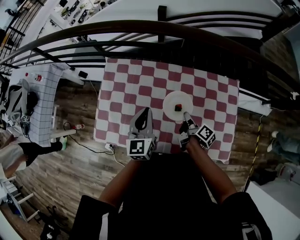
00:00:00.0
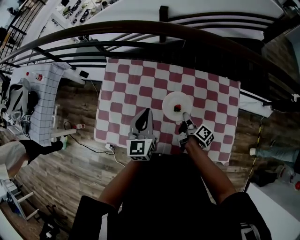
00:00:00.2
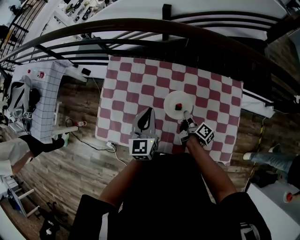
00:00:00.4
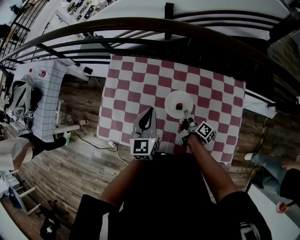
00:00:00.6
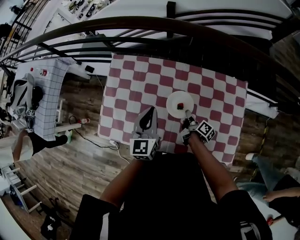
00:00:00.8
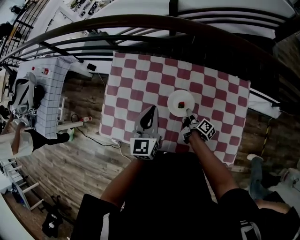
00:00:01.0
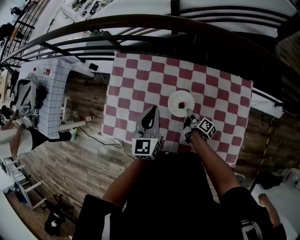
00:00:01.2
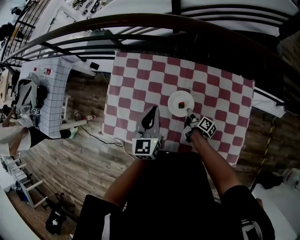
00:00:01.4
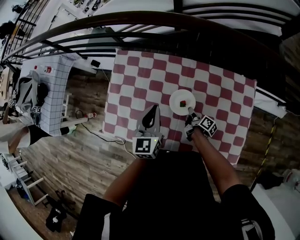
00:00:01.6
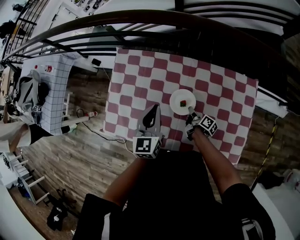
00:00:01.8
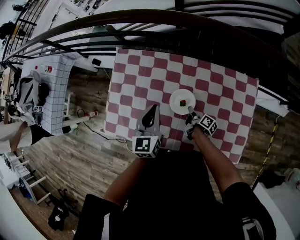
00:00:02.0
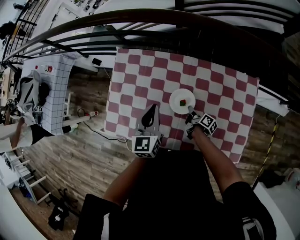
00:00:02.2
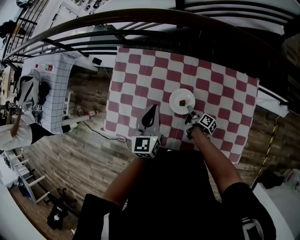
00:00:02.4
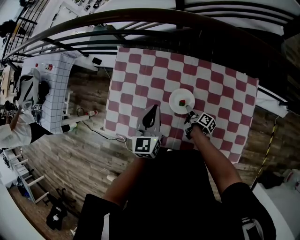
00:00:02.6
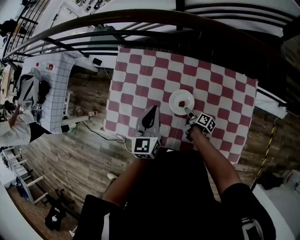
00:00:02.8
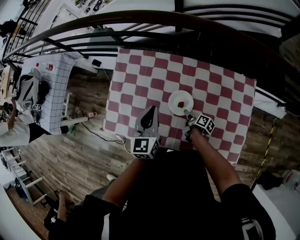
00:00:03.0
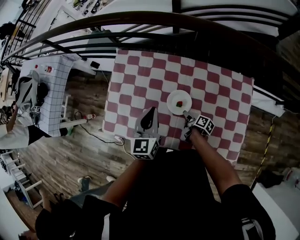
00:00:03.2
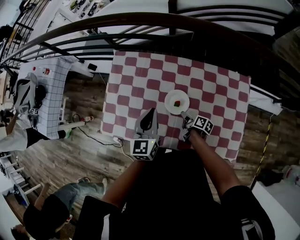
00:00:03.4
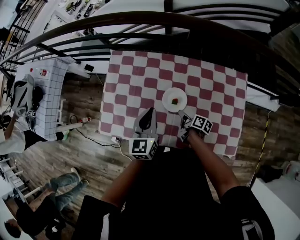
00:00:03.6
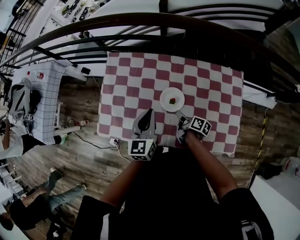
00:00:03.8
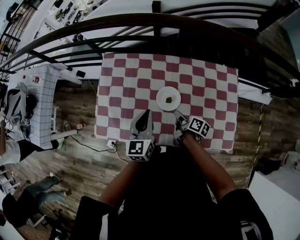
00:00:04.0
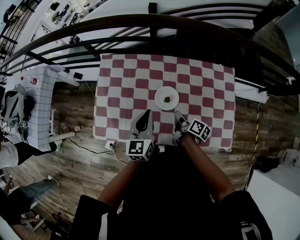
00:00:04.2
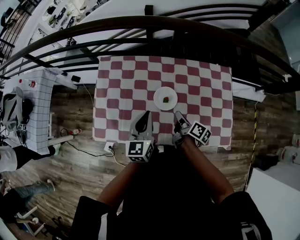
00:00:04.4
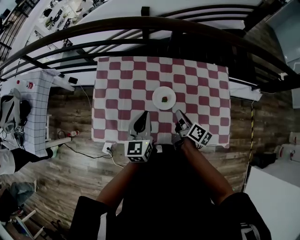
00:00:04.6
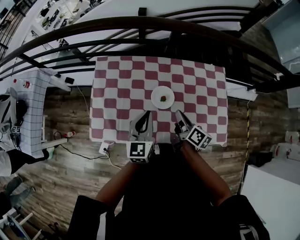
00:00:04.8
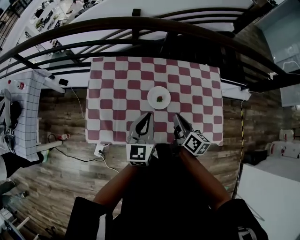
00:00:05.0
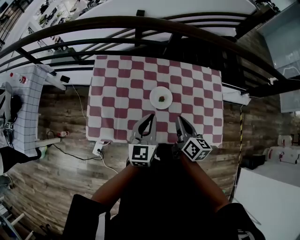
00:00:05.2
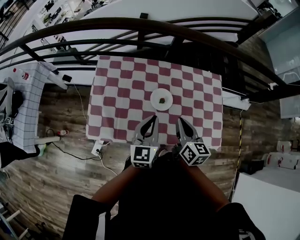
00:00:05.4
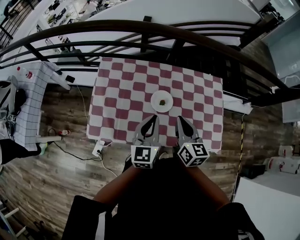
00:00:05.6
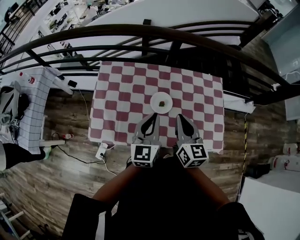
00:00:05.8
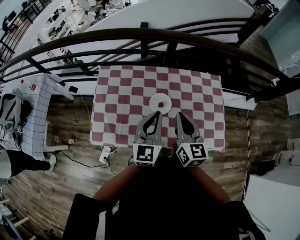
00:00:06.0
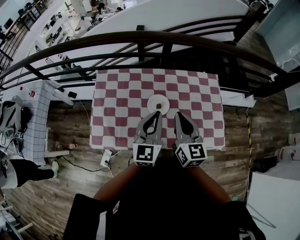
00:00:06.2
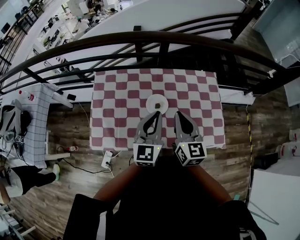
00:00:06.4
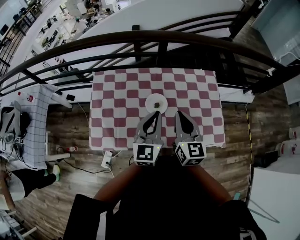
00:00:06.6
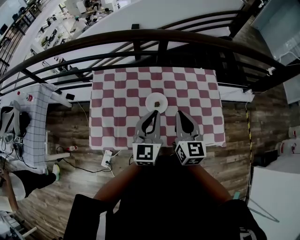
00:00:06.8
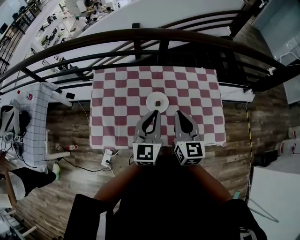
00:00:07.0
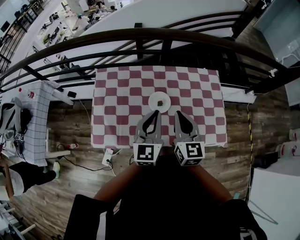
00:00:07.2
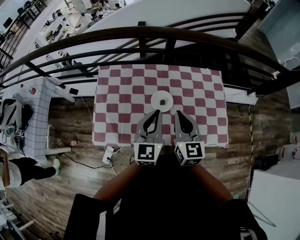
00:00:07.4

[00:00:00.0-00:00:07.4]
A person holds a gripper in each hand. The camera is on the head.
00:00:03.0 to 00:00:04.4: The left gripper shifts by about 5 cm.
00:00:04.4 to 00:00:06.0: The left gripper is displaced upward by roughly 10 cm.

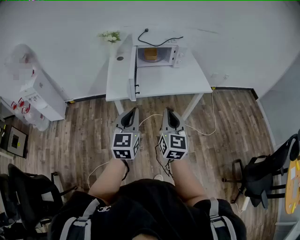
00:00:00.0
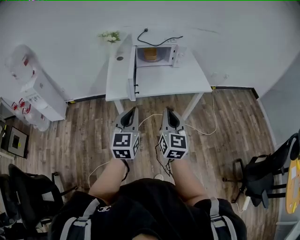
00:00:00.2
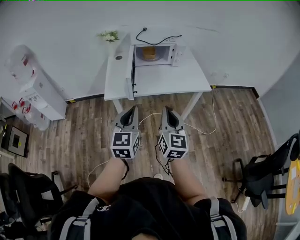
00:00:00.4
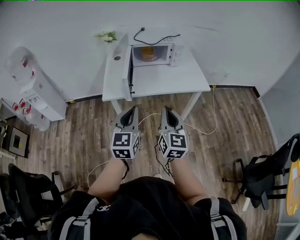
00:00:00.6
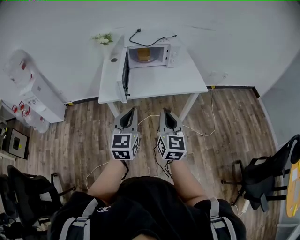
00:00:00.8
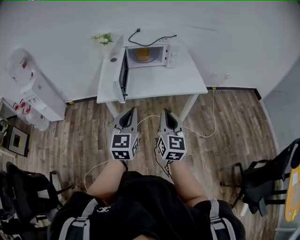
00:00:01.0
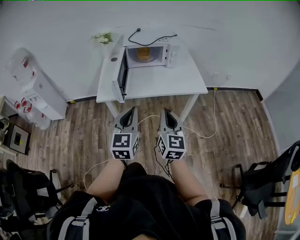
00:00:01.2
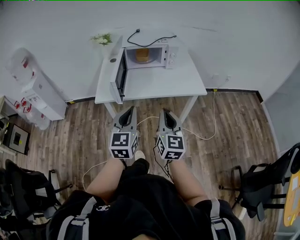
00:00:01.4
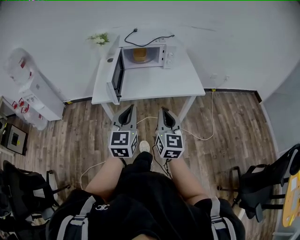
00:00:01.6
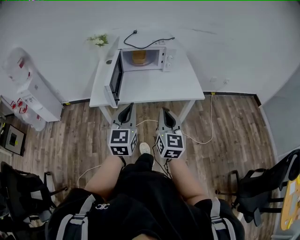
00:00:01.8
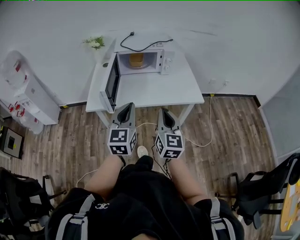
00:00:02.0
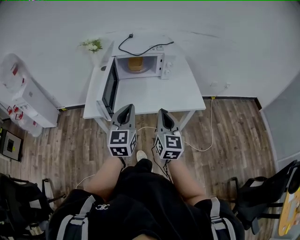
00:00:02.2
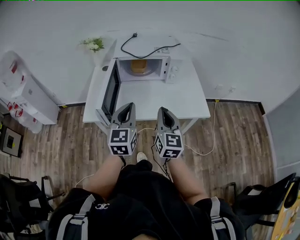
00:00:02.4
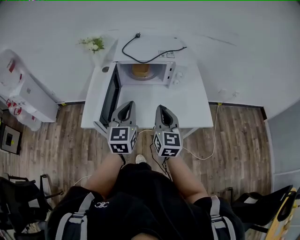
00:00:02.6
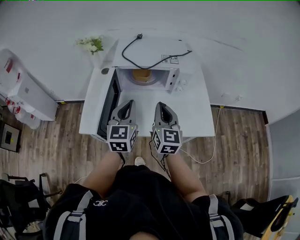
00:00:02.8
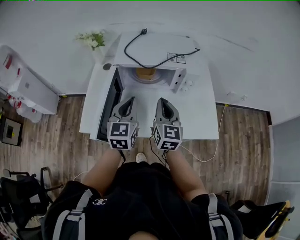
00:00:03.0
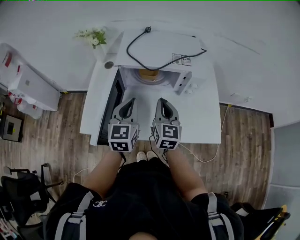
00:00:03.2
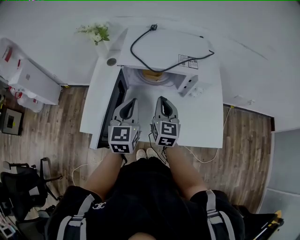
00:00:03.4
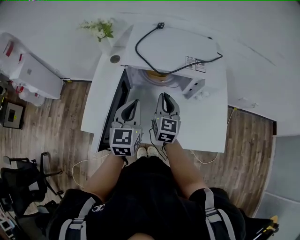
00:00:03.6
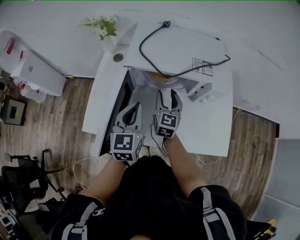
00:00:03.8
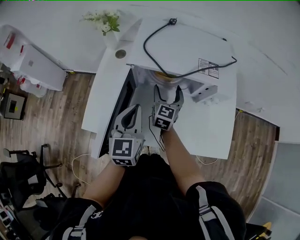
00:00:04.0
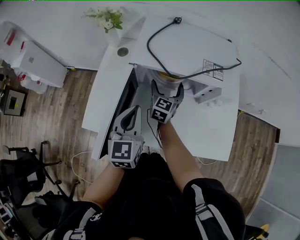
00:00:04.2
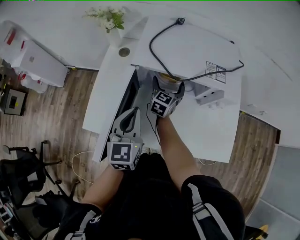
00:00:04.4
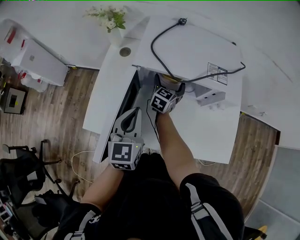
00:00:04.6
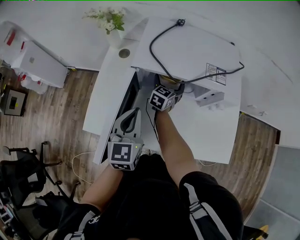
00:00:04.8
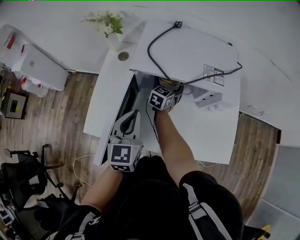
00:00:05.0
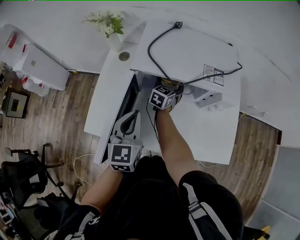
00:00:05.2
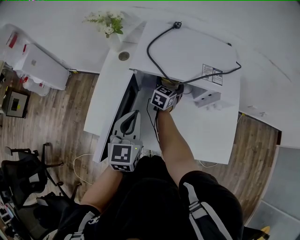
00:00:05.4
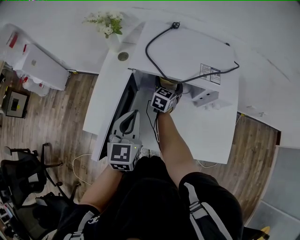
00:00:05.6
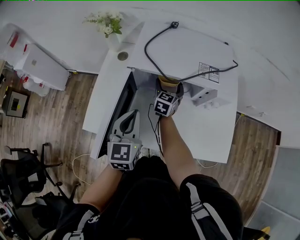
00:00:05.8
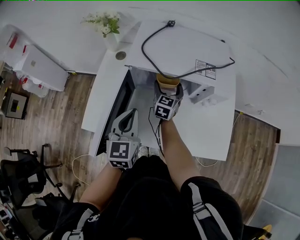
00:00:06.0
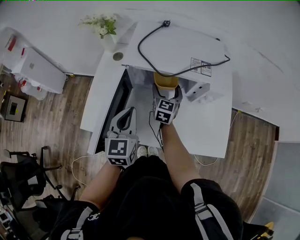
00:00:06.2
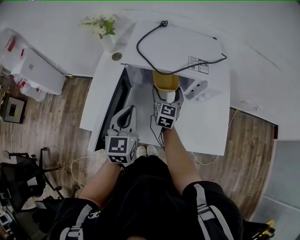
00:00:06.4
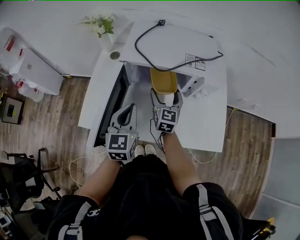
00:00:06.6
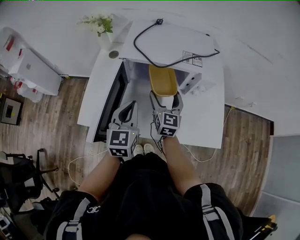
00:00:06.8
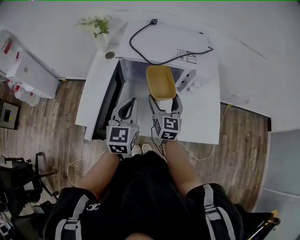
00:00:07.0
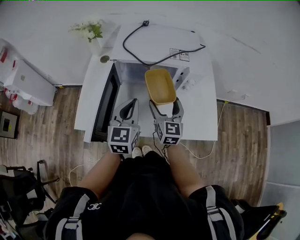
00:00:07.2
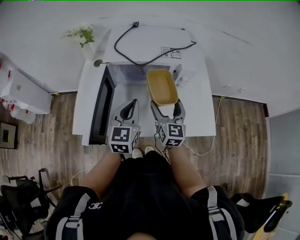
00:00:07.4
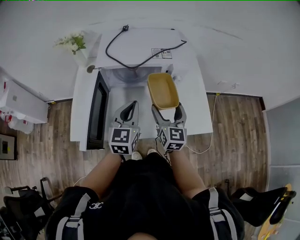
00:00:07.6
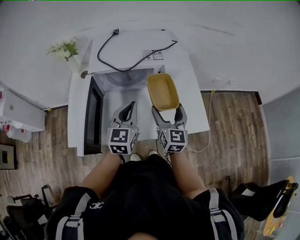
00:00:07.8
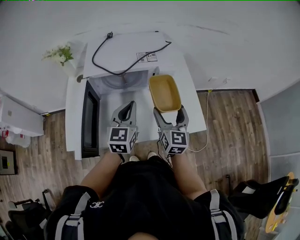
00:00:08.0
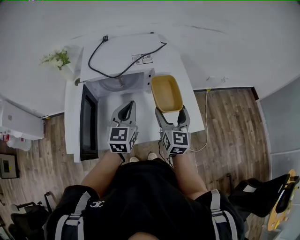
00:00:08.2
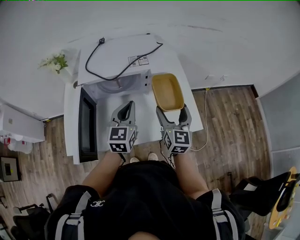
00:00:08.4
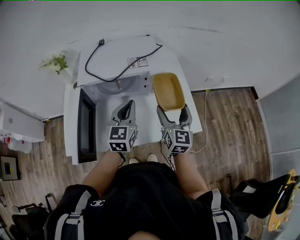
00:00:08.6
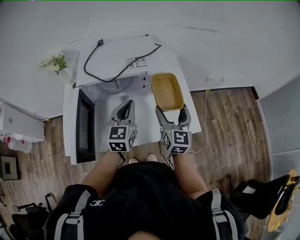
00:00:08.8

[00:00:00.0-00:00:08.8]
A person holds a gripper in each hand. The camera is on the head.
00:00:00.0 to 00:00:01.4: The two grippers go about 10 cm to the right.
00:00:01.4 to 00:00:03.0: Both grippers are carried forward, about 50 cm.
00:00:03.0 to 00:00:04.4: The left gripper moves to the left, forward and downward, some 10 cm; the right gripper shifts some 30 cm forward and downward, and opens its fingers.
00:00:04.4 to 00:00:05.8: The grippers move only a little.
00:00:05.8 to 00:00:07.4: The left gripper travels to the right by roughly 10 cm, while the right gripper travels backward, upward and to the right by about 30 cm.
00:00:07.4 to 00:00:08.8: The left gripper heads to the right and forward, covering roughly 10 cm. The right gripper travels to the right and upward by approximately 15 cm.

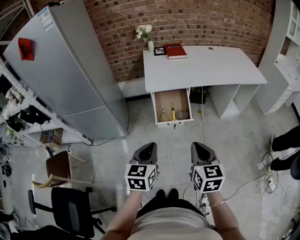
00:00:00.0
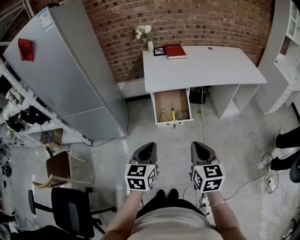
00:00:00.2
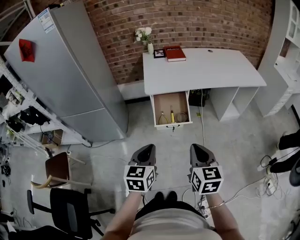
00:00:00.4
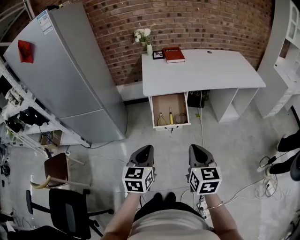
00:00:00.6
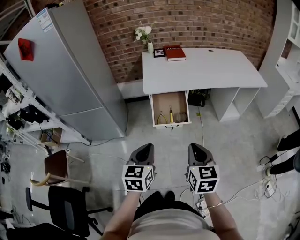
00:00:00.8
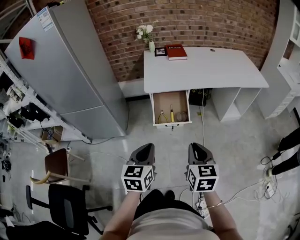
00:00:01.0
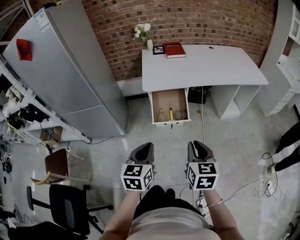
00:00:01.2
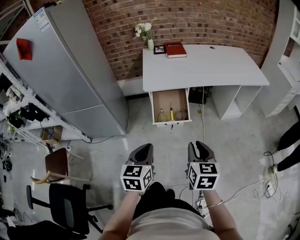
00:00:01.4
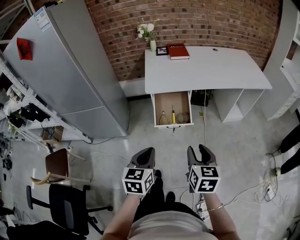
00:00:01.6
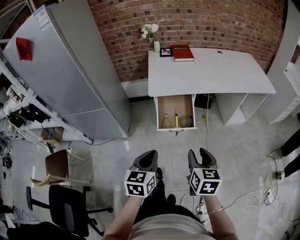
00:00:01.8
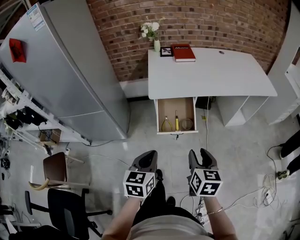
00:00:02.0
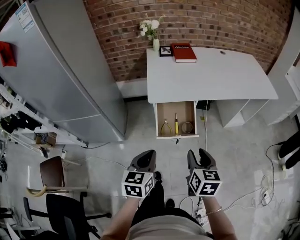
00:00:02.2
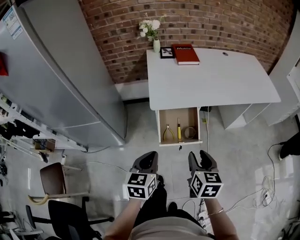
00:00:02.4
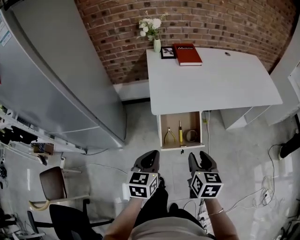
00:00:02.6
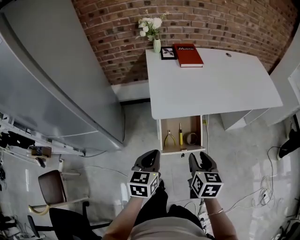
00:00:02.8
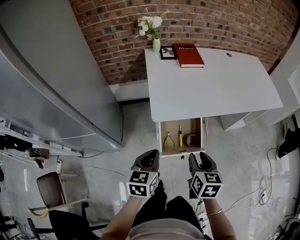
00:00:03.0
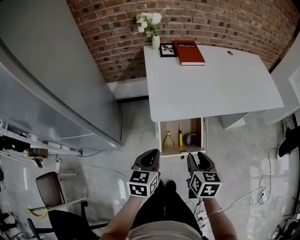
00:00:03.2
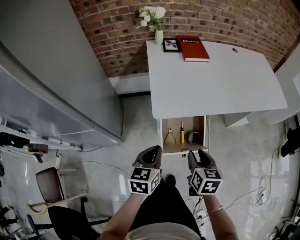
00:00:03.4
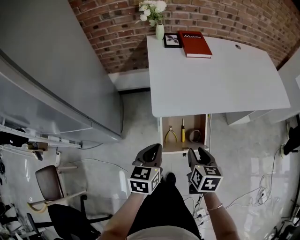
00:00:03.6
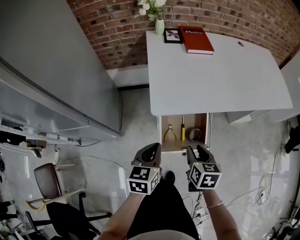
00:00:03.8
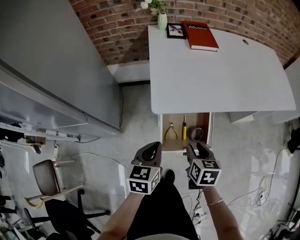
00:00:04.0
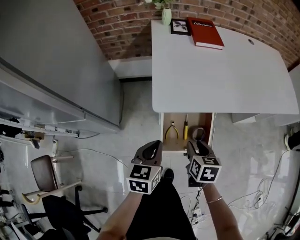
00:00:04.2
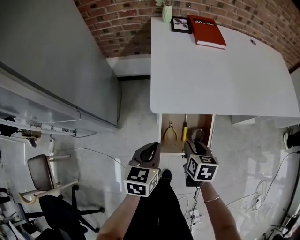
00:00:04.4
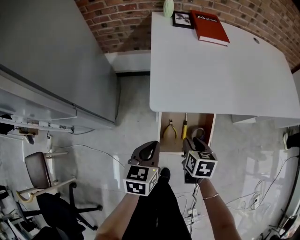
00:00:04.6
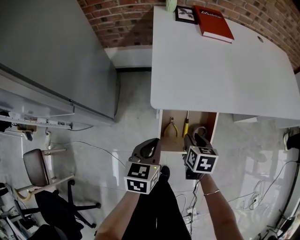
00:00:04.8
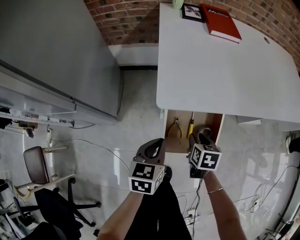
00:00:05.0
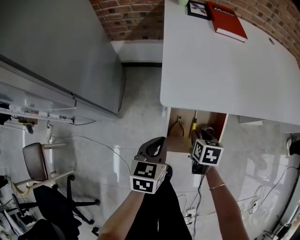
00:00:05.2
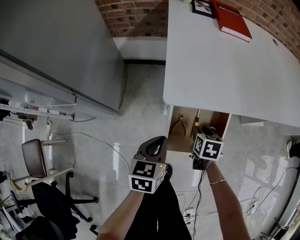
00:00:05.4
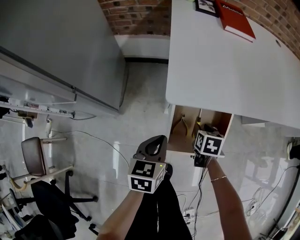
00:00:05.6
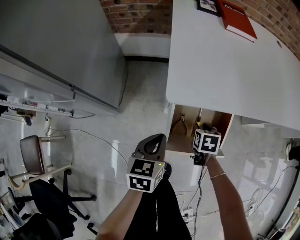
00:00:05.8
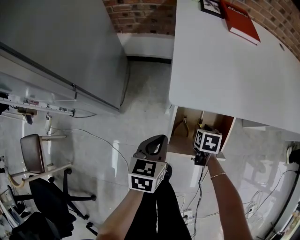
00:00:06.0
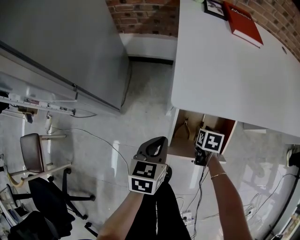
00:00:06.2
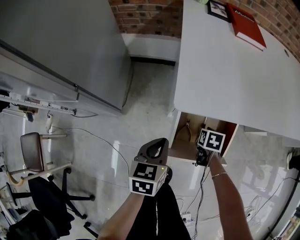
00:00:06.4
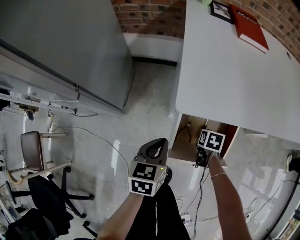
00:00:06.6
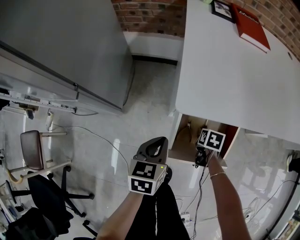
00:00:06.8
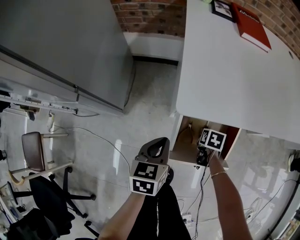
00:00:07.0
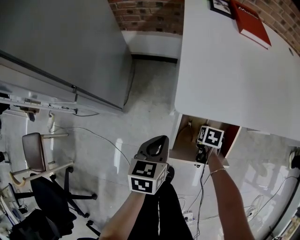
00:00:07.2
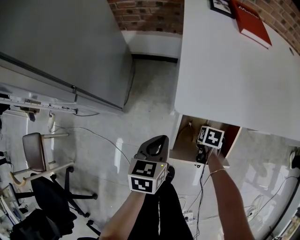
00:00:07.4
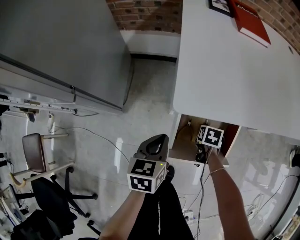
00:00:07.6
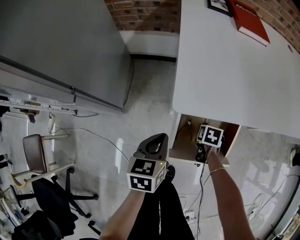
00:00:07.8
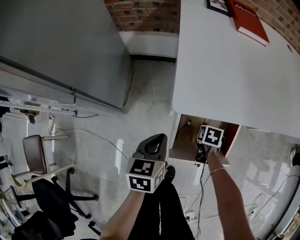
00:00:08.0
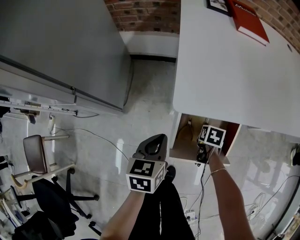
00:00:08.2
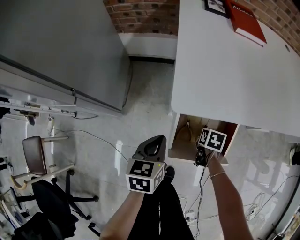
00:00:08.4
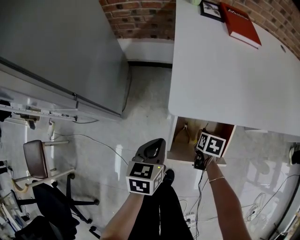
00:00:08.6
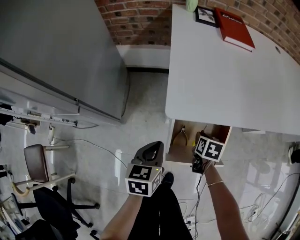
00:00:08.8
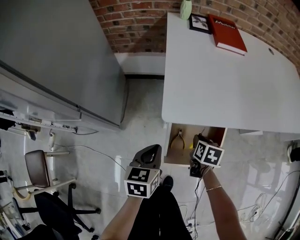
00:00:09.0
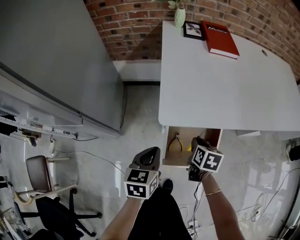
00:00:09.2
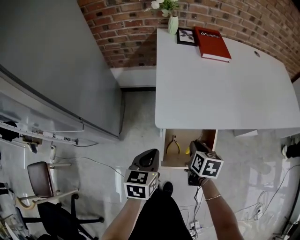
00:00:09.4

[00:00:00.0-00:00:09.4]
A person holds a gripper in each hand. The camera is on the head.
00:00:00.0 to 00:00:01.6: The right gripper shifts by some 5 cm, and opens up.
00:00:01.6 to 00:00:03.2: The left gripper shifts approximately 25 cm forward, while the right gripper is displaced forward and to the left by about 25 cm.
00:00:03.2 to 00:00:04.8: The right gripper travels downward and forward by approximately 25 cm, while the left gripper travels downward and forward by some 15 cm.
00:00:04.8 to 00:00:06.2: The right gripper travels downward and forward by about 15 cm, while the left gripper travels downward by about 5 cm.
00:00:06.2 to 00:00:07.8: The grippers make only small movements.
00:00:07.8 to 00:00:09.4: The right gripper heads upward, covering about 20 cm, and turns by approximately 20 degrees. Meanwhile the left gripper is displaced upward by roughly 10 cm.
